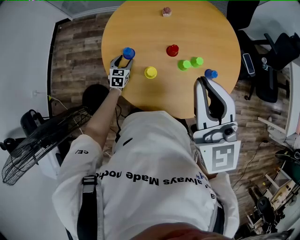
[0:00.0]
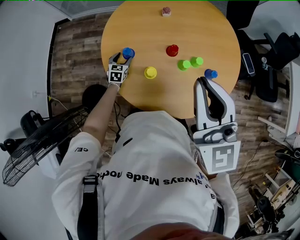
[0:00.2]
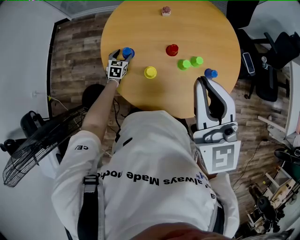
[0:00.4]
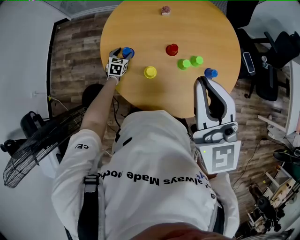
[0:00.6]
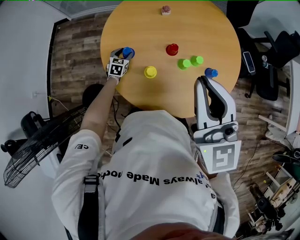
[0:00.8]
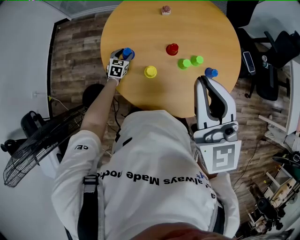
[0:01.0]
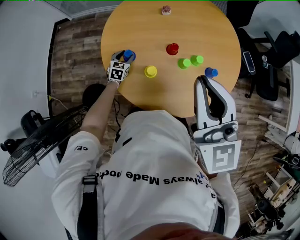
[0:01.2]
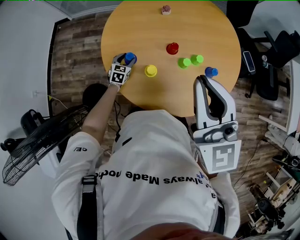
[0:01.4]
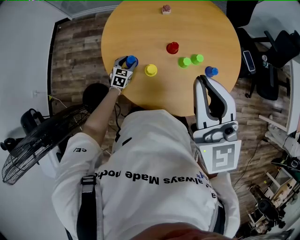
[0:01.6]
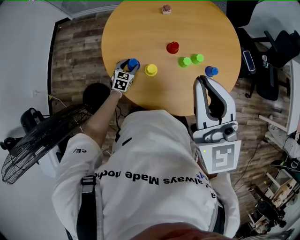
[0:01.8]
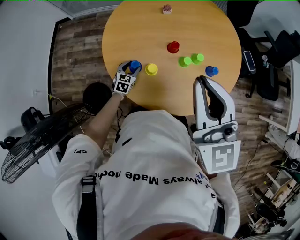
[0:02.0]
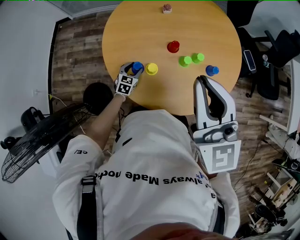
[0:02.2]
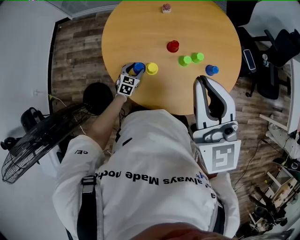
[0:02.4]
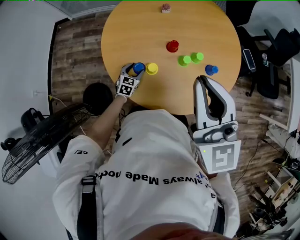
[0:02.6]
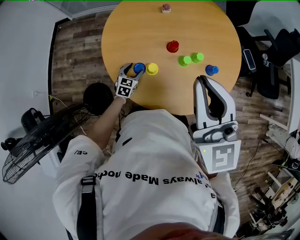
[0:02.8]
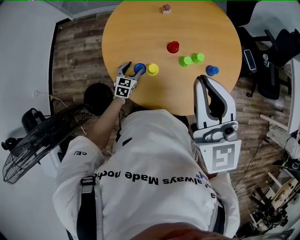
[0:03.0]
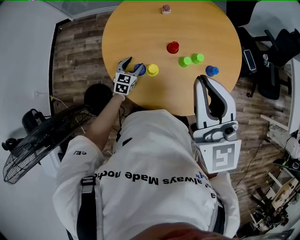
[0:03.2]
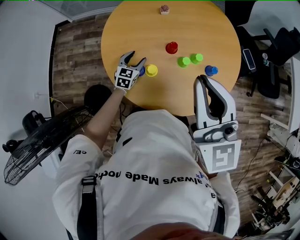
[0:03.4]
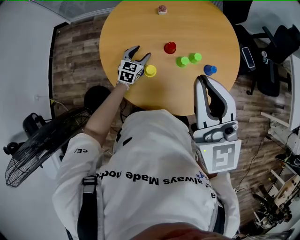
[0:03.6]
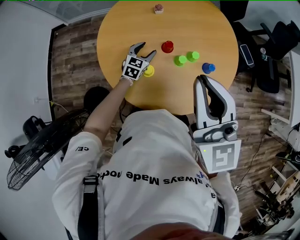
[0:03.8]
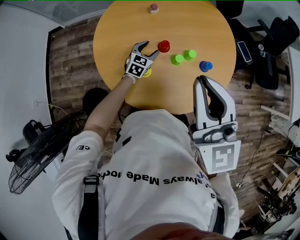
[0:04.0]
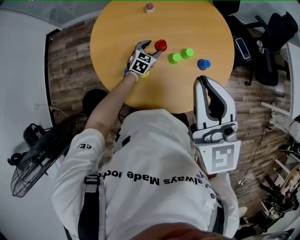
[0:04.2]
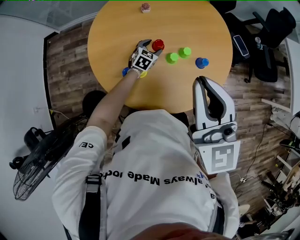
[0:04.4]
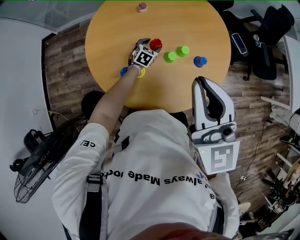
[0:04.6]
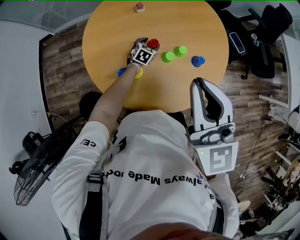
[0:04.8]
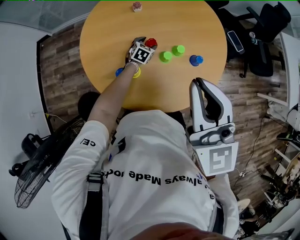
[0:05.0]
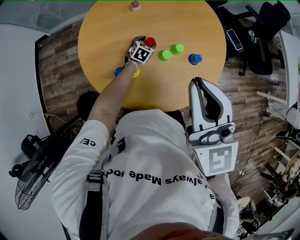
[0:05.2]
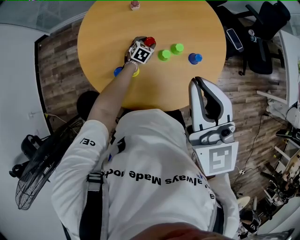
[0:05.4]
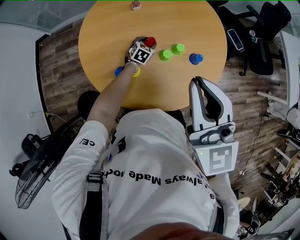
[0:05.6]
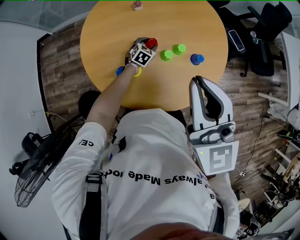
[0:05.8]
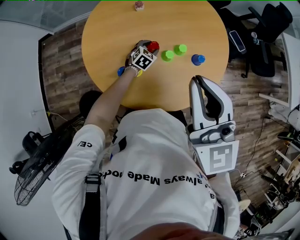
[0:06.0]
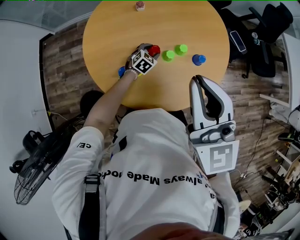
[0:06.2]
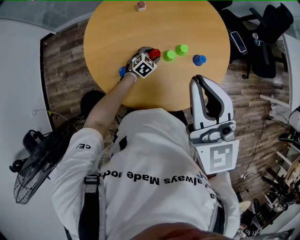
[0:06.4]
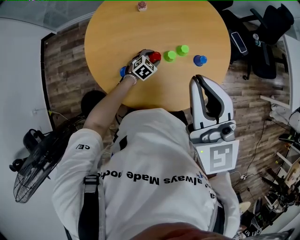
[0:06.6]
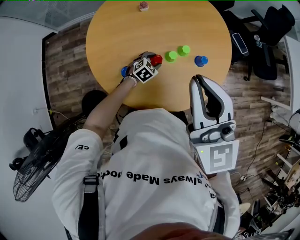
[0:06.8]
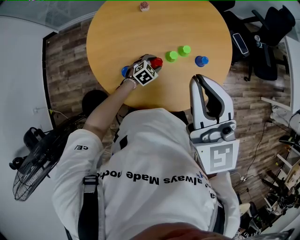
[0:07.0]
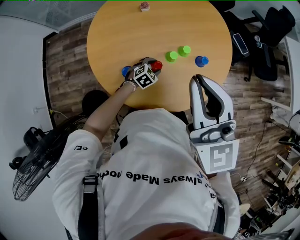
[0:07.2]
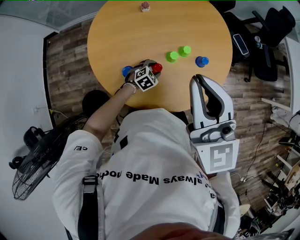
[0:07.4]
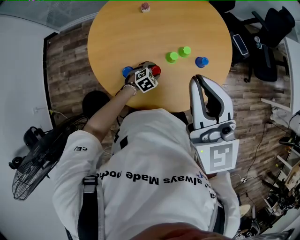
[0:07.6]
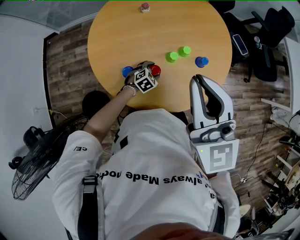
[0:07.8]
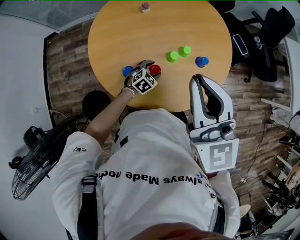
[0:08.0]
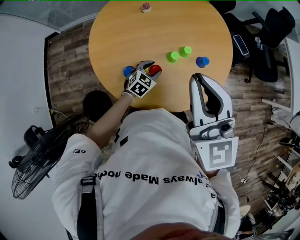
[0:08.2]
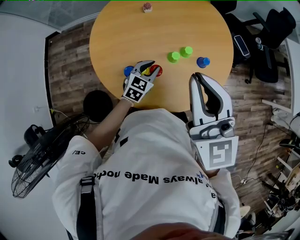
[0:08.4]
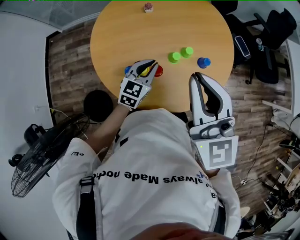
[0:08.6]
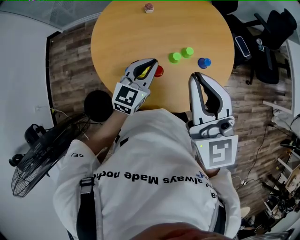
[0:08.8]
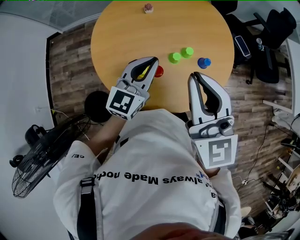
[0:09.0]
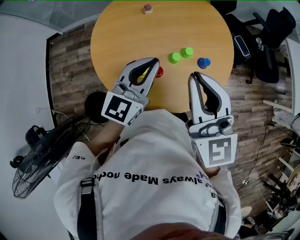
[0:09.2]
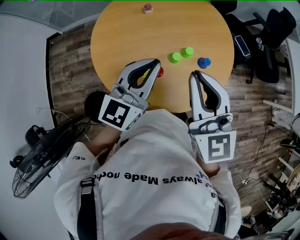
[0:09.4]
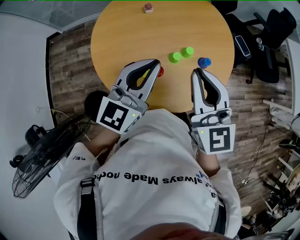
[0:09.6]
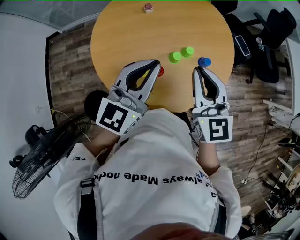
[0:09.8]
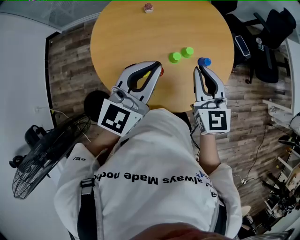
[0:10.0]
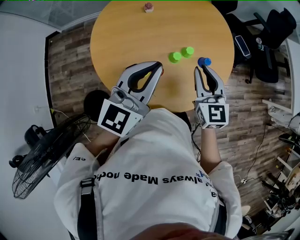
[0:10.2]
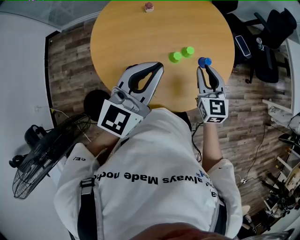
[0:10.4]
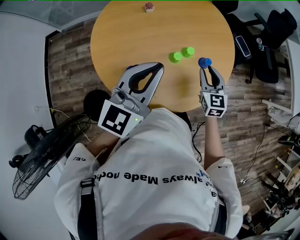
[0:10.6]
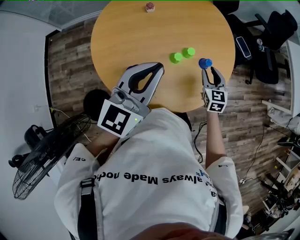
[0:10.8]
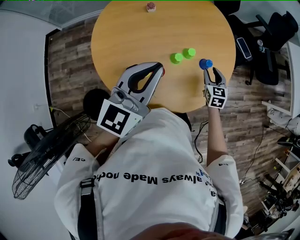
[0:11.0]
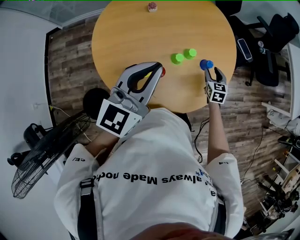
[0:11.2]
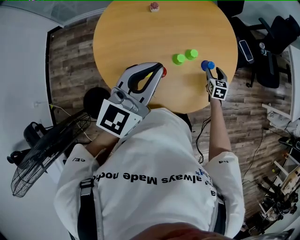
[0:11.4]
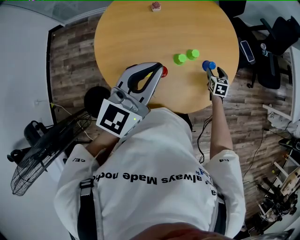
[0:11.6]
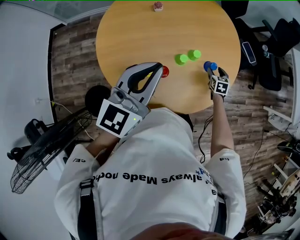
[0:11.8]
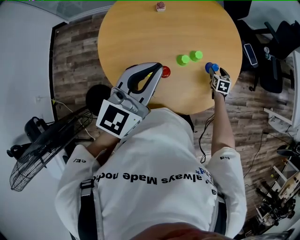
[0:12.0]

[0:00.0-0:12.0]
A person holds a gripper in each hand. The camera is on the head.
0:00.0 to 0:01.6: The grippers move only a little.
0:01.6 to 0:03.0: The left gripper ends up roughly 5 cm from where it was.
0:03.0 to 0:04.4: The left gripper goes some 20 cm to the right and forward. Meanwhile the right gripper heads to the right, covering about 5 cm.
0:04.4 to 0:06.0: The grippers move only a little.
0:06.0 to 0:07.6: The left gripper is displaced backward by some 15 cm.
0:07.6 to 0:09.0: The left gripper moves upward, some 35 cm, tips its fingers upward by about 50 degrees, and closes its fingers.
0:09.0 to 0:10.4: The left gripper heads upward, covering approximately 5 cm; the right gripper heads downward, covering roughly 20 cm.
0:10.4 to 0:12.0: The right gripper goes approximately 30 cm downward, to the right and forward, points its fingers approximately 30 degrees further downward, and opens its fingers.

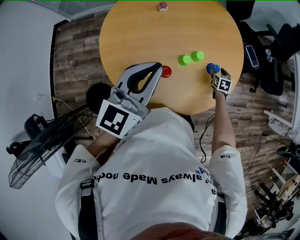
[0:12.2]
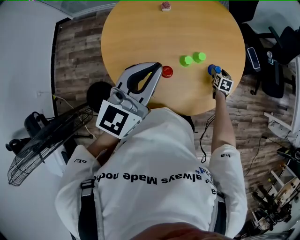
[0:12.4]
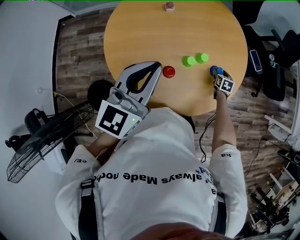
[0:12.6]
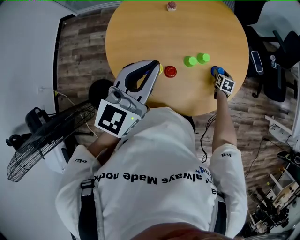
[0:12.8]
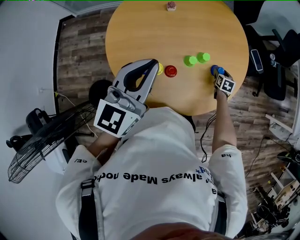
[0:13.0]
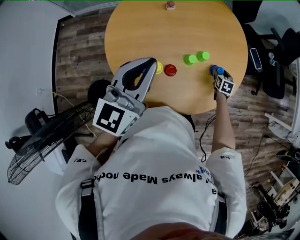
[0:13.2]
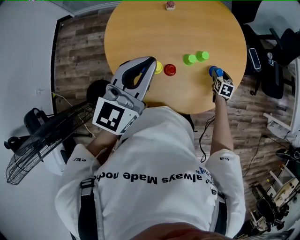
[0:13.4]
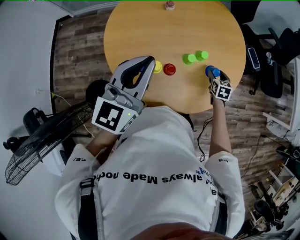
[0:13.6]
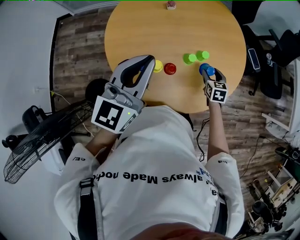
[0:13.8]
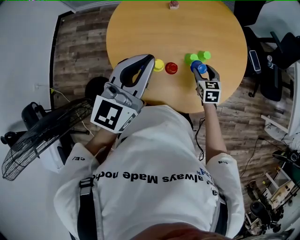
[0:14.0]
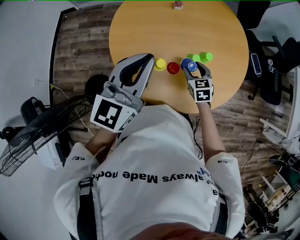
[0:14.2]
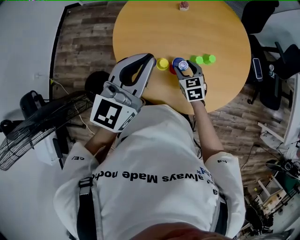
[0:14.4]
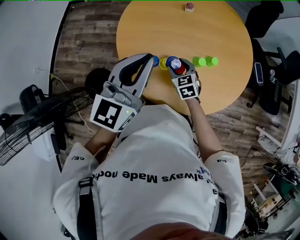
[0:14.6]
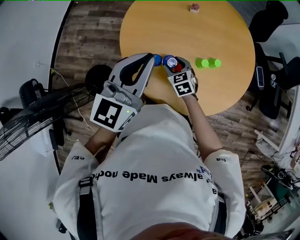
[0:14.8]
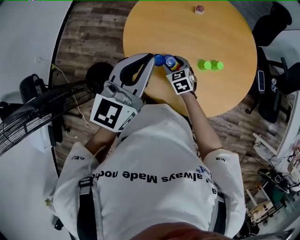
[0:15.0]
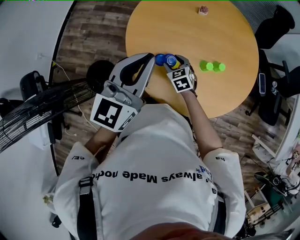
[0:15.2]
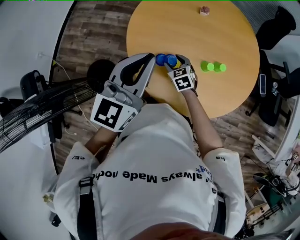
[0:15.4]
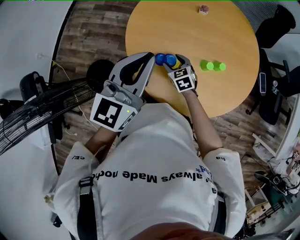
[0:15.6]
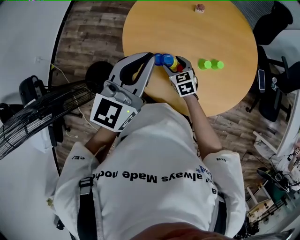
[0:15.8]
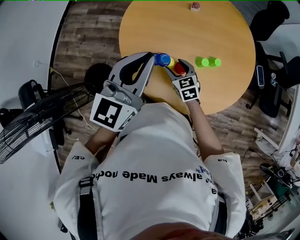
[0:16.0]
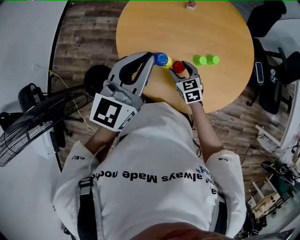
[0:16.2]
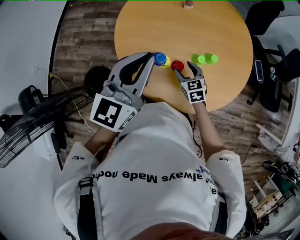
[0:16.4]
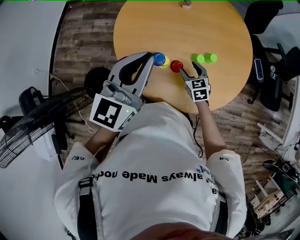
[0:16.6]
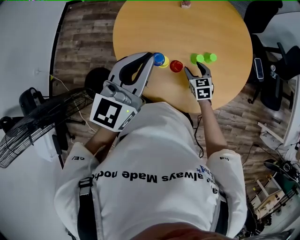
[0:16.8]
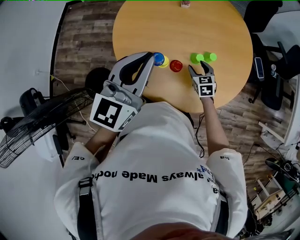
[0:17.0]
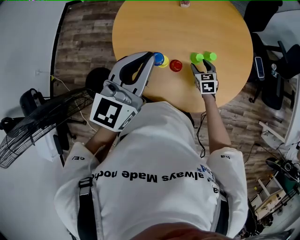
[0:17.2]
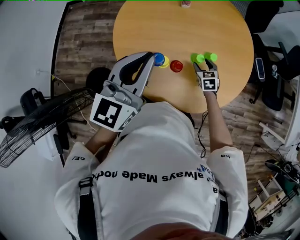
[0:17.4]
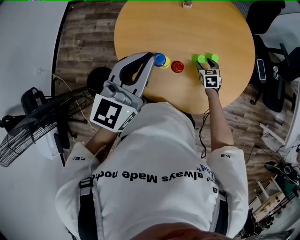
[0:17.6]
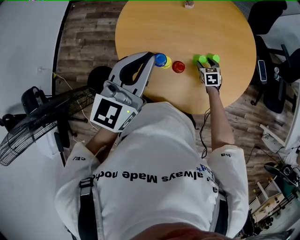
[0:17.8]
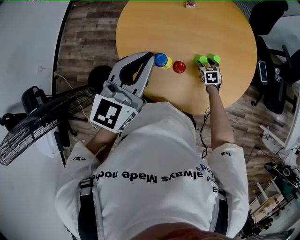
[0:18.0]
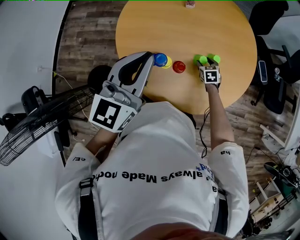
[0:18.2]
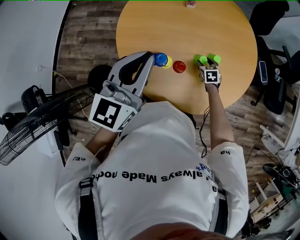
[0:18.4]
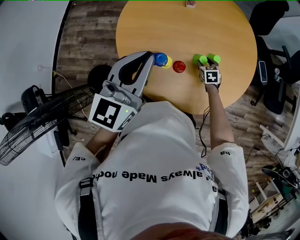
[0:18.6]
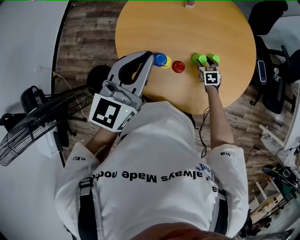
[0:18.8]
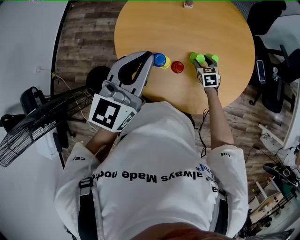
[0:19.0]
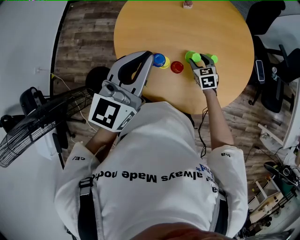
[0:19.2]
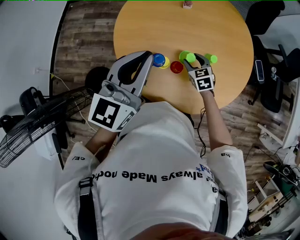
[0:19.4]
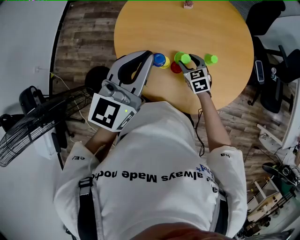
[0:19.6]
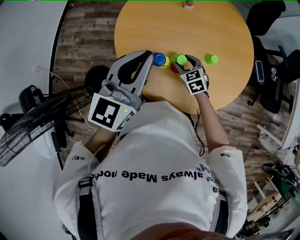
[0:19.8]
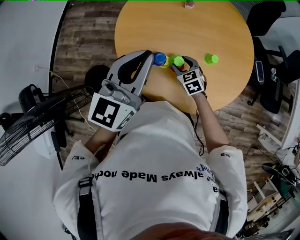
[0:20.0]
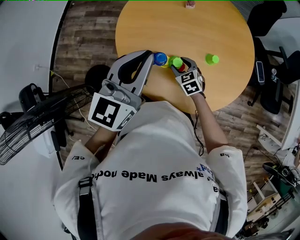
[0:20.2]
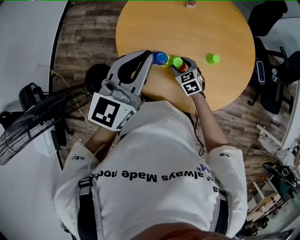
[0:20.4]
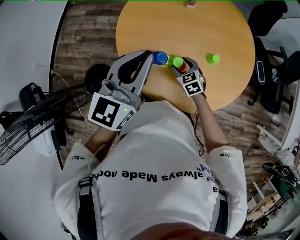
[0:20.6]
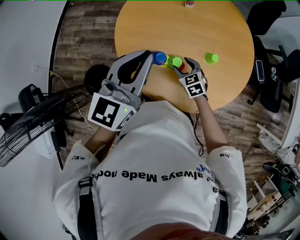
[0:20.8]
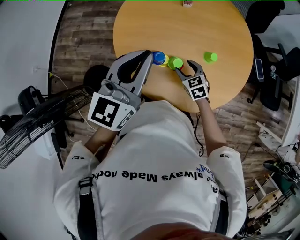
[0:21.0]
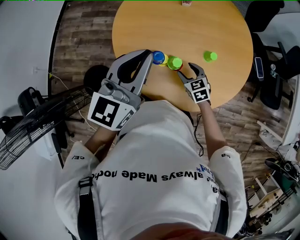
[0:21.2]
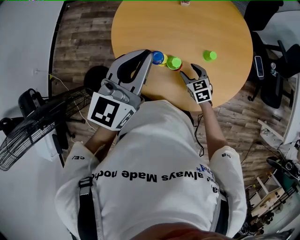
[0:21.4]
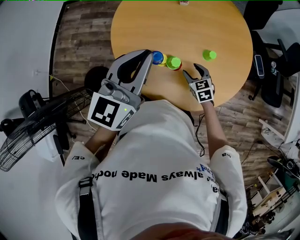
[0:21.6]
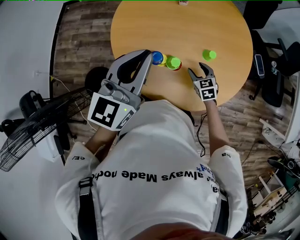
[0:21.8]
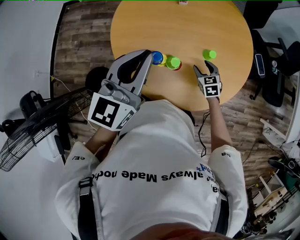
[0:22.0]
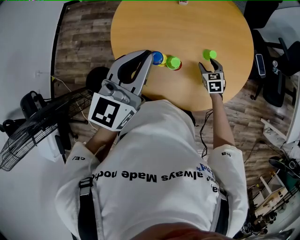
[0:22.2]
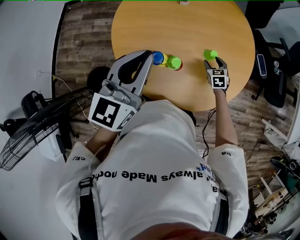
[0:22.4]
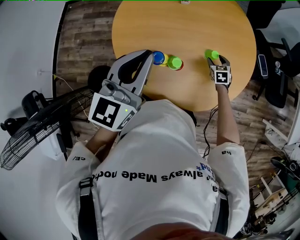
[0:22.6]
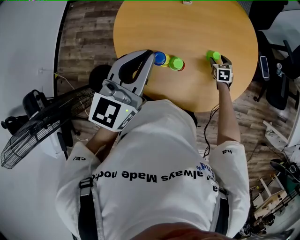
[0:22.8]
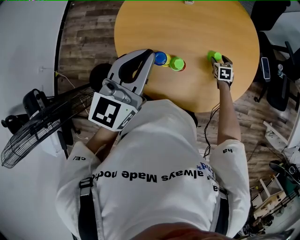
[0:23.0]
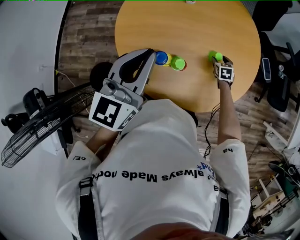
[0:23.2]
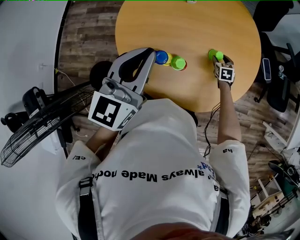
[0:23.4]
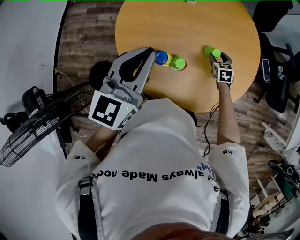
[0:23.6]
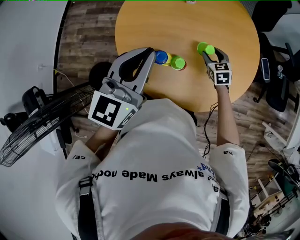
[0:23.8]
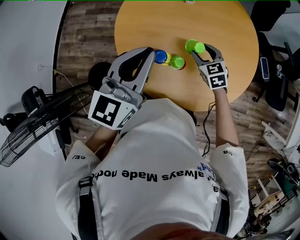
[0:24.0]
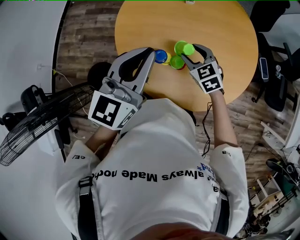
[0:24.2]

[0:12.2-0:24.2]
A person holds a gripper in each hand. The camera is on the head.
0:12.2 to 0:13.8: The right gripper moves to the left, upward and backward, some 15 cm. The left gripper moves roughly 5 cm.
0:13.8 to 0:15.2: The left gripper shifts by about 10 cm. The right gripper ends up about 30 cm from where it was, and changes its angle by about 40 degrees.
0:15.2 to 0:16.6: The right gripper is displaced to the right by approximately 15 cm, while the left gripper is displaced to the right by approximately 5 cm.
0:16.6 to 0:18.2: The right gripper shifts some 15 cm downward, to the right and forward.
0:18.2 to 0:19.8: The right gripper shifts about 15 cm to the left and upward, and turns by some 20 degrees.
0:19.8 to 0:21.2: The right gripper moves approximately 5 cm.
0:21.2 to 0:22.6: The right gripper moves to the right and forward, some 20 cm, and turns by some 20 degrees.
0:22.6 to 0:24.2: The right gripper heads to the left and upward, covering about 25 cm, and changes its angle by about 30 degrees.
